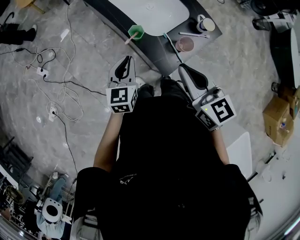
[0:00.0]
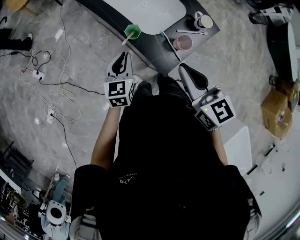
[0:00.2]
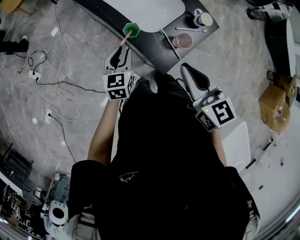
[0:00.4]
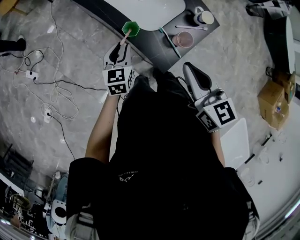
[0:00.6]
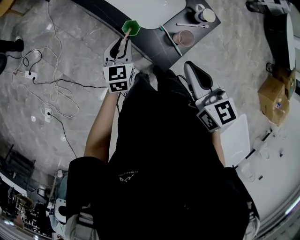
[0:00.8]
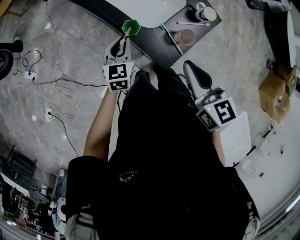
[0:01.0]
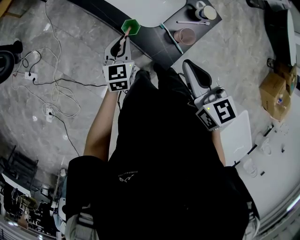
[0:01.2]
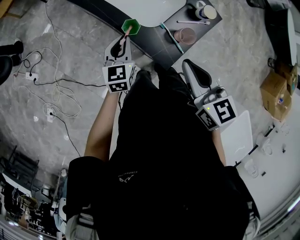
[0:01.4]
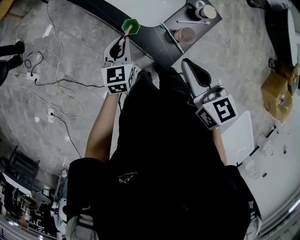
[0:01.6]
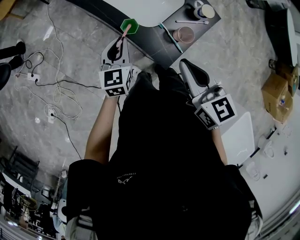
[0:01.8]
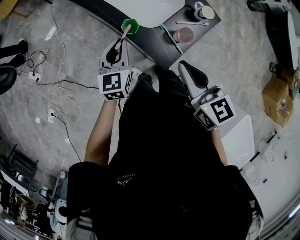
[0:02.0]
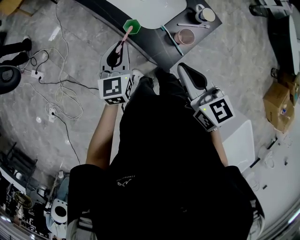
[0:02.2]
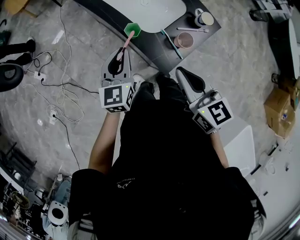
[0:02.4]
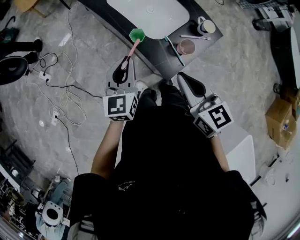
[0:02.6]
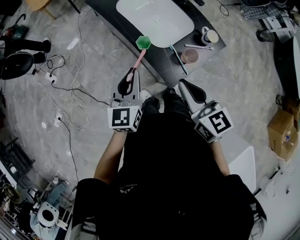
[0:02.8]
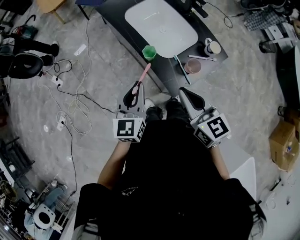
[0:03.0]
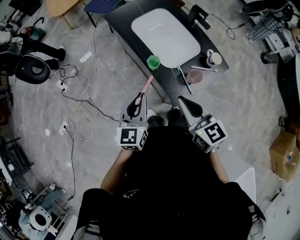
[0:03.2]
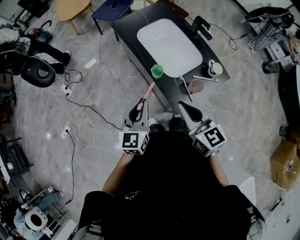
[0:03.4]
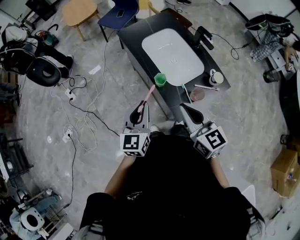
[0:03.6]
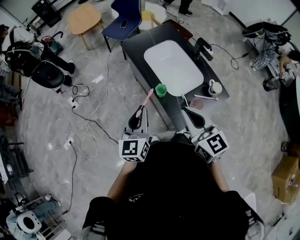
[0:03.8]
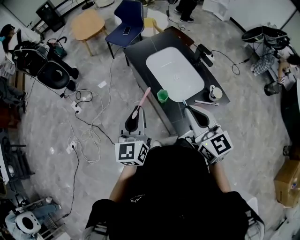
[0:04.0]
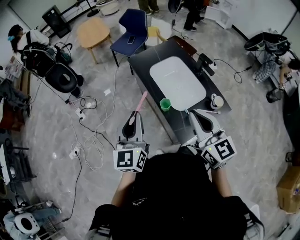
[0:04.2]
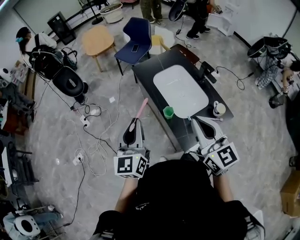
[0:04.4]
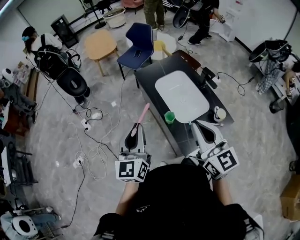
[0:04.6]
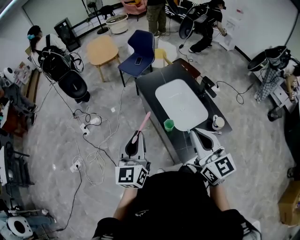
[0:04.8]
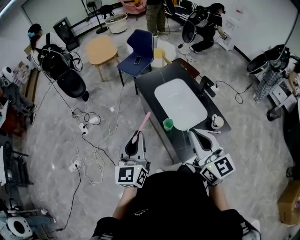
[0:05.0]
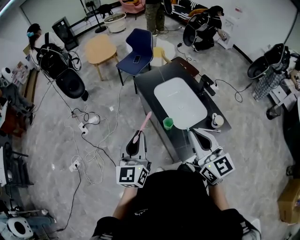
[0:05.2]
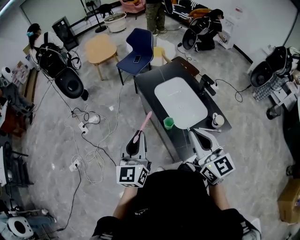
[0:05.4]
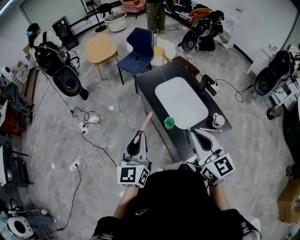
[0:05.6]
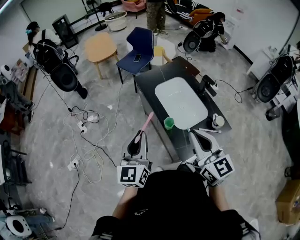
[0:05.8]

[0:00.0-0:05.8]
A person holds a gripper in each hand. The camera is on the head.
0.0 to 1.4 s: The left gripper heads forward and downward, covering approximately 10 cm.
1.4 to 2.8 s: The right gripper ends up roughly 5 cm from where it was. The left gripper travels upward and backward by about 15 cm.
2.8 to 4.4 s: The right gripper goes some 15 cm upward, and swivels roughly 20 degrees. The left gripper moves upward and to the left, about 20 cm, and turns by approximately 20 degrees.
4.4 to 5.8 s: There are only small adjustments of the grippers.

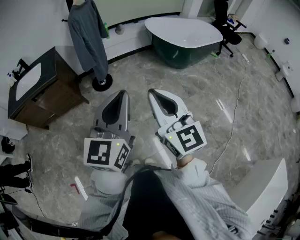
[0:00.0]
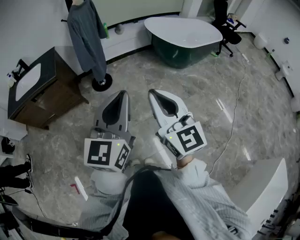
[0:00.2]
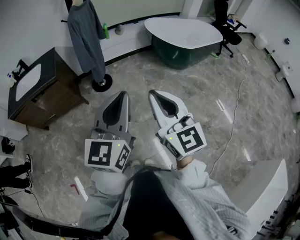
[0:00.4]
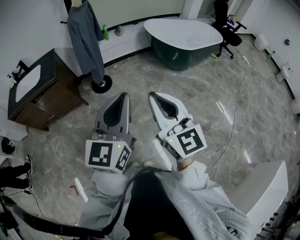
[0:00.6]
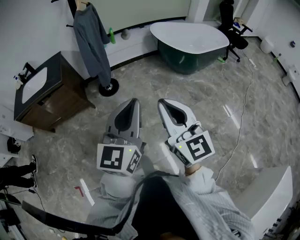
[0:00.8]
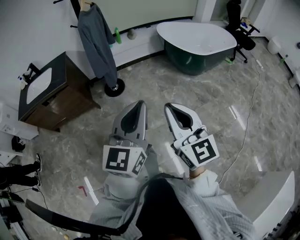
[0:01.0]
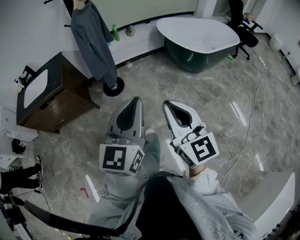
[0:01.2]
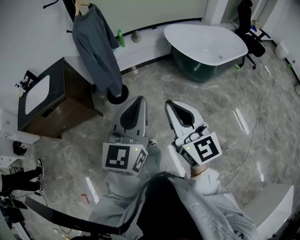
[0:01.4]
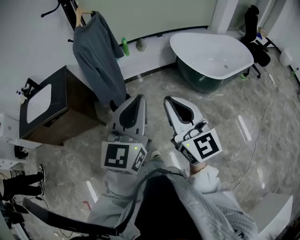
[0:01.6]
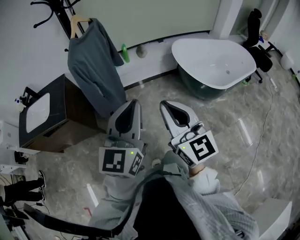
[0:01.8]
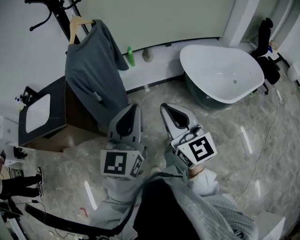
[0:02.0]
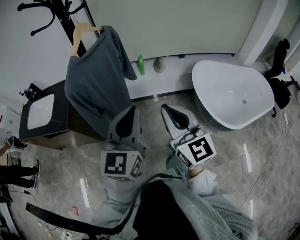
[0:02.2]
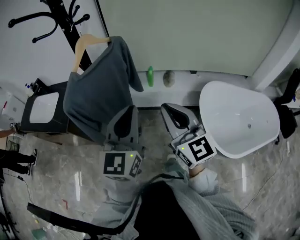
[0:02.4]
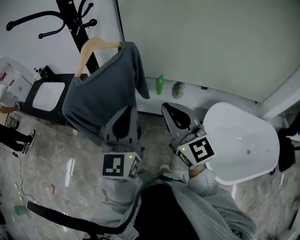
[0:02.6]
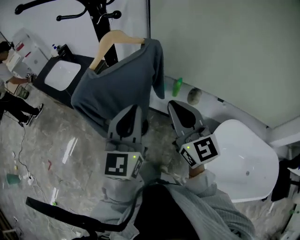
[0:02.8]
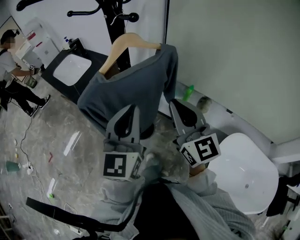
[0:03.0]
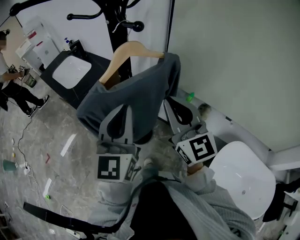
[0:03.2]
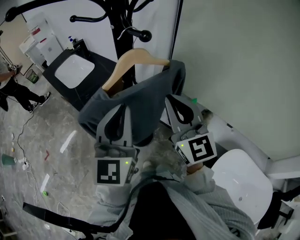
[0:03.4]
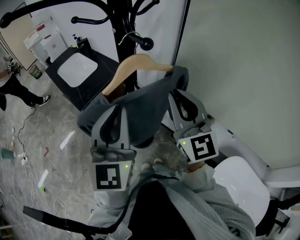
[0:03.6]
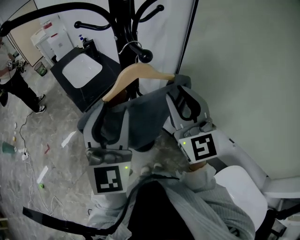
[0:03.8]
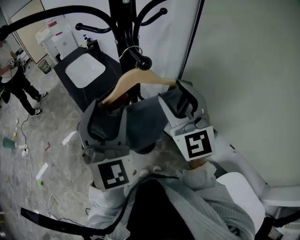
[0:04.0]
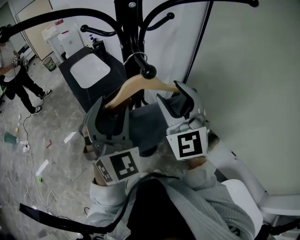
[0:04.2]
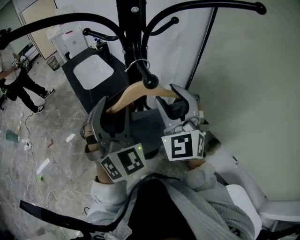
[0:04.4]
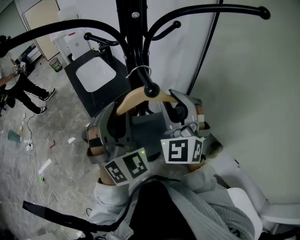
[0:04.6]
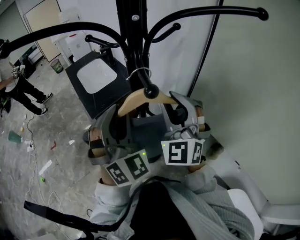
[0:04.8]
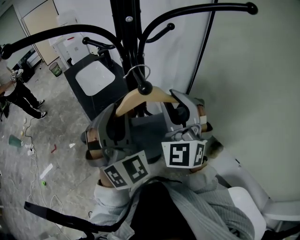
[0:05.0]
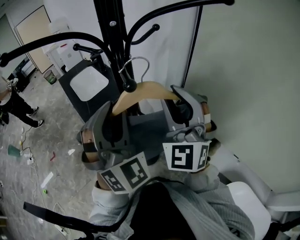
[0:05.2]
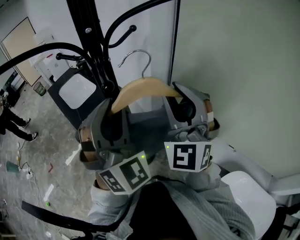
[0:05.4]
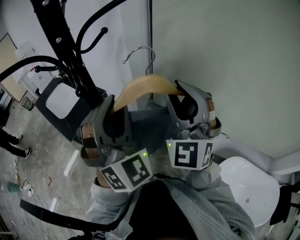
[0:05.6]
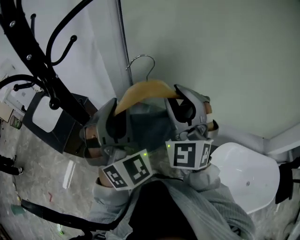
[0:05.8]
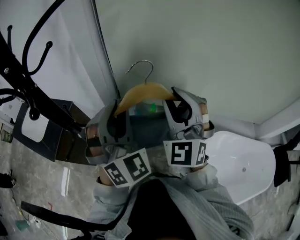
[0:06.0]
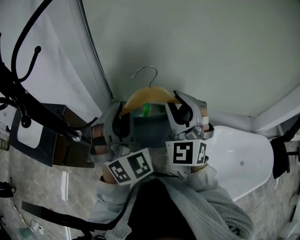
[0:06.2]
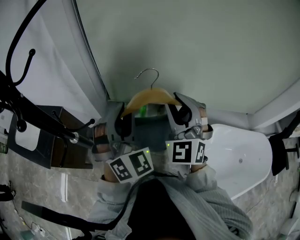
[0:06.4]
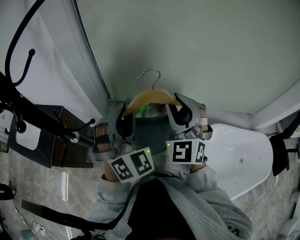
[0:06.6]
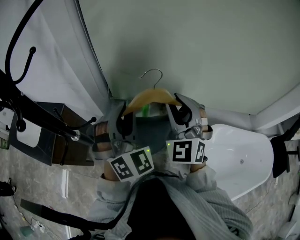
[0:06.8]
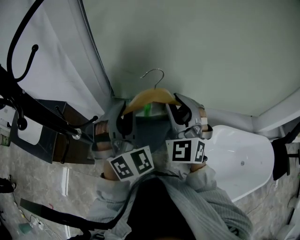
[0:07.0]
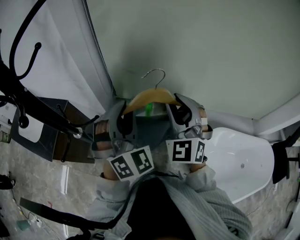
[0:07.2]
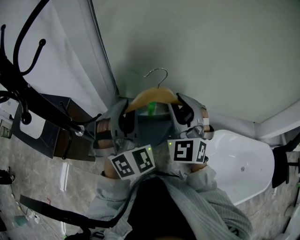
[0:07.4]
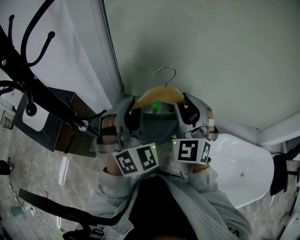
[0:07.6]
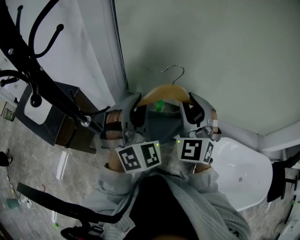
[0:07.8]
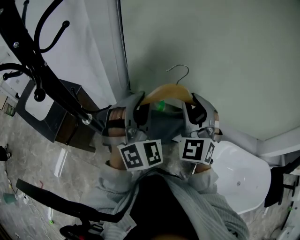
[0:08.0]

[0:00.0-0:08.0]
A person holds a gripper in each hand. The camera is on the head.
0.0 to 1.6 s: The grippers both shift forward by about 35 cm.
1.6 to 3.2 s: The two grippers travel together, some 50 cm. The right gripper turns by about 50 degrees. The left gripper rotates about 60 degrees.
3.2 to 4.8 s: The grippers both shift forward by roughly 15 cm. The left gripper rolls clockwise, seen from behind, by approximately 60 degrees, and opens its fingers. Meanwhile the right gripper rotates approximately 40 degrees, and opens its fingers.
4.8 to 6.4 s: The left gripper moves some 5 cm upward and comes back, and swivels roughly 50 degrees. Meanwhile the right gripper reaches some 5 cm upward, then returns, and turns by some 50 degrees.
6.4 to 8.0 s: There are only small adjustments of the grippers.

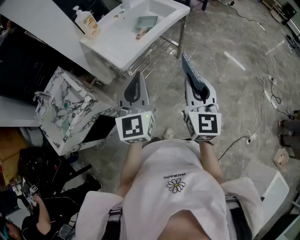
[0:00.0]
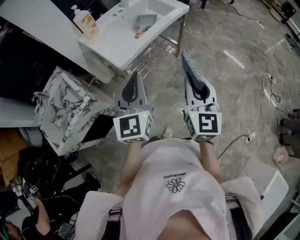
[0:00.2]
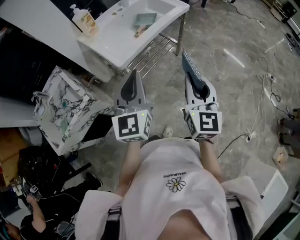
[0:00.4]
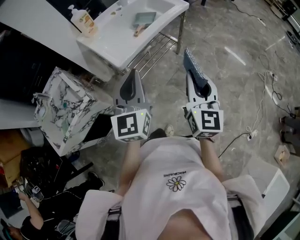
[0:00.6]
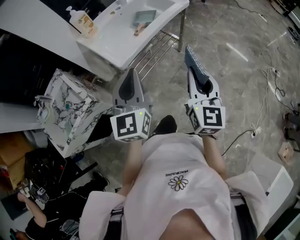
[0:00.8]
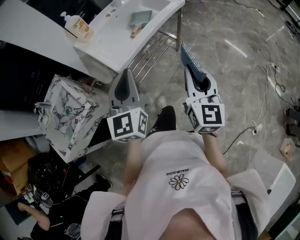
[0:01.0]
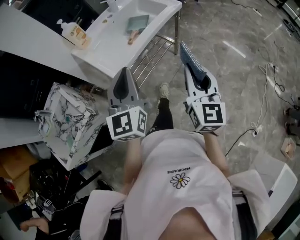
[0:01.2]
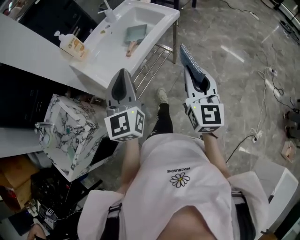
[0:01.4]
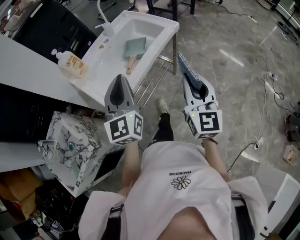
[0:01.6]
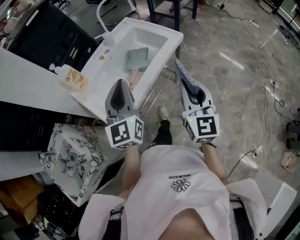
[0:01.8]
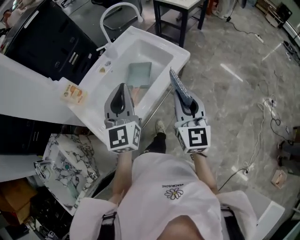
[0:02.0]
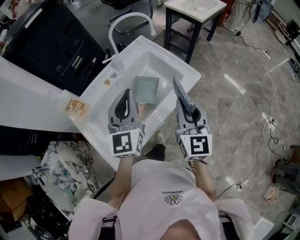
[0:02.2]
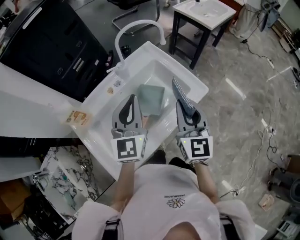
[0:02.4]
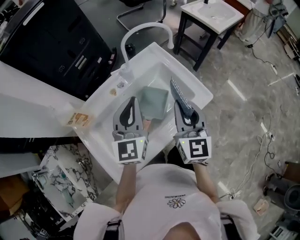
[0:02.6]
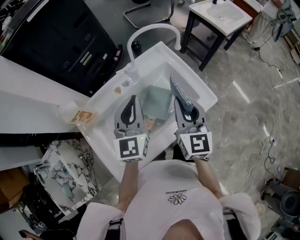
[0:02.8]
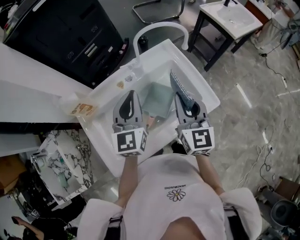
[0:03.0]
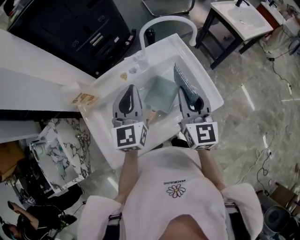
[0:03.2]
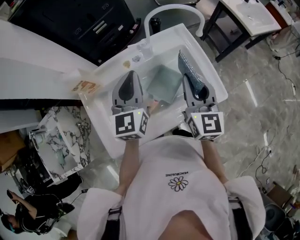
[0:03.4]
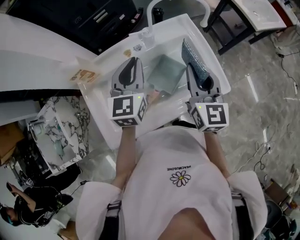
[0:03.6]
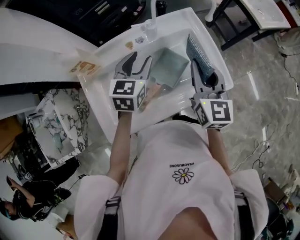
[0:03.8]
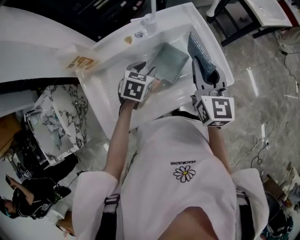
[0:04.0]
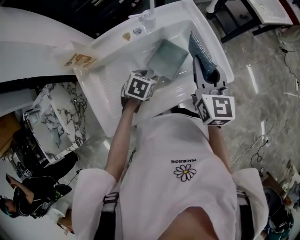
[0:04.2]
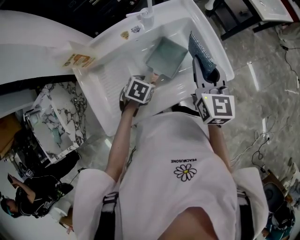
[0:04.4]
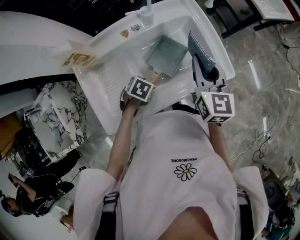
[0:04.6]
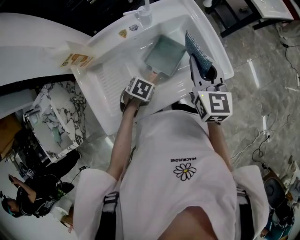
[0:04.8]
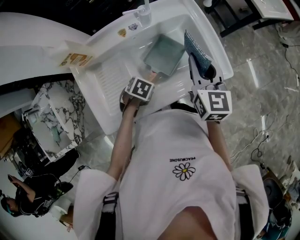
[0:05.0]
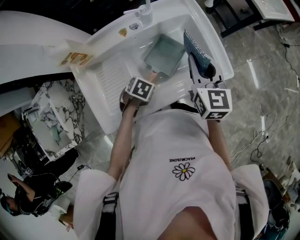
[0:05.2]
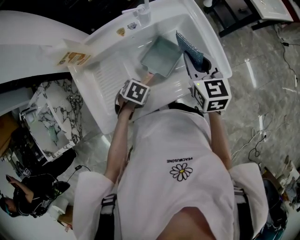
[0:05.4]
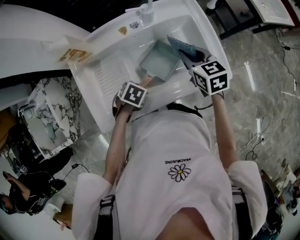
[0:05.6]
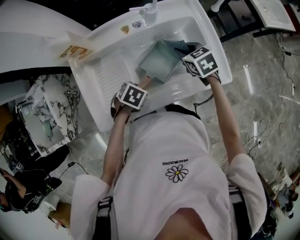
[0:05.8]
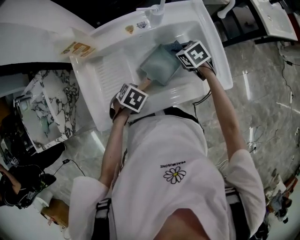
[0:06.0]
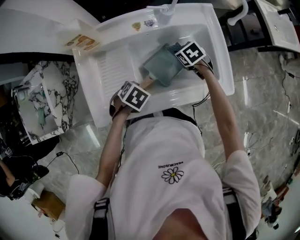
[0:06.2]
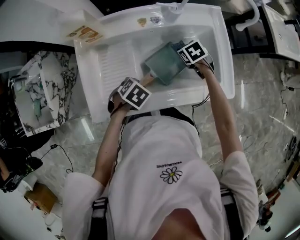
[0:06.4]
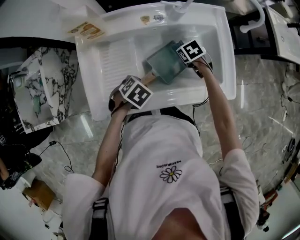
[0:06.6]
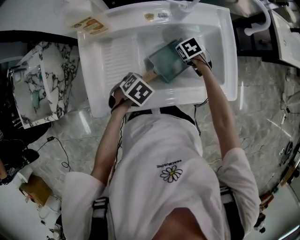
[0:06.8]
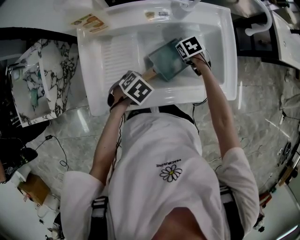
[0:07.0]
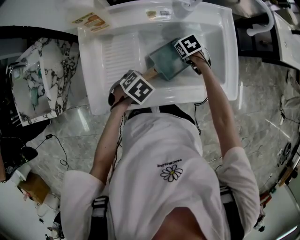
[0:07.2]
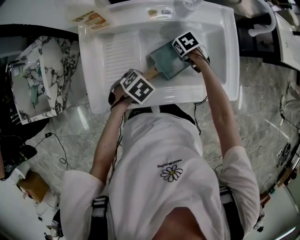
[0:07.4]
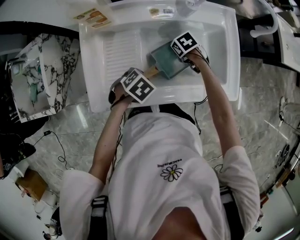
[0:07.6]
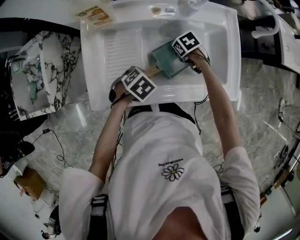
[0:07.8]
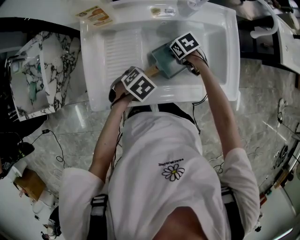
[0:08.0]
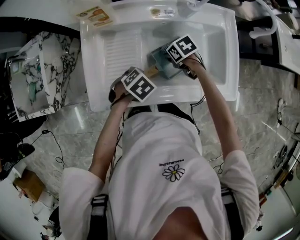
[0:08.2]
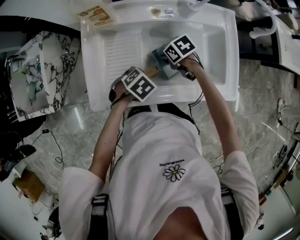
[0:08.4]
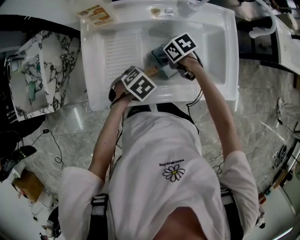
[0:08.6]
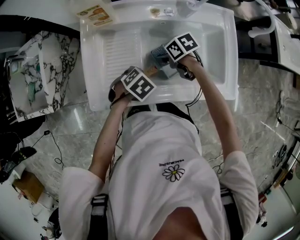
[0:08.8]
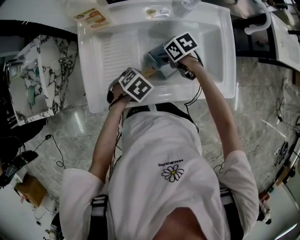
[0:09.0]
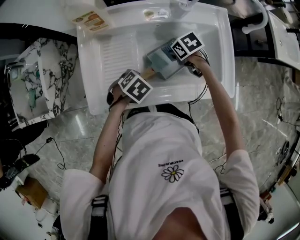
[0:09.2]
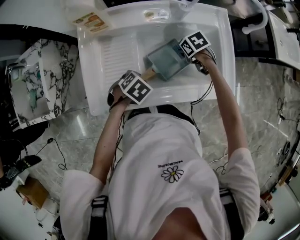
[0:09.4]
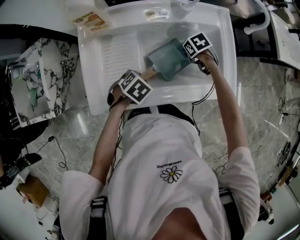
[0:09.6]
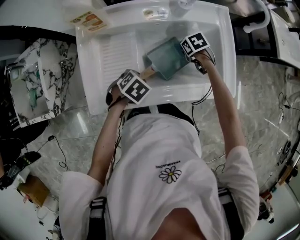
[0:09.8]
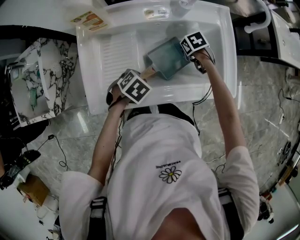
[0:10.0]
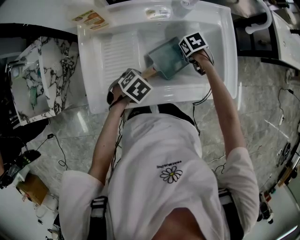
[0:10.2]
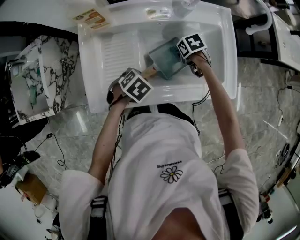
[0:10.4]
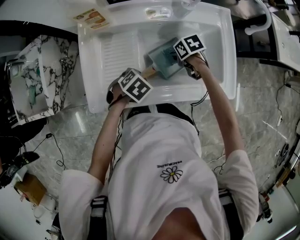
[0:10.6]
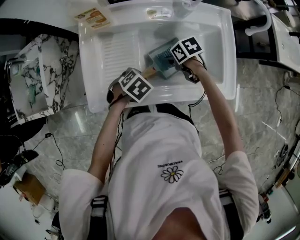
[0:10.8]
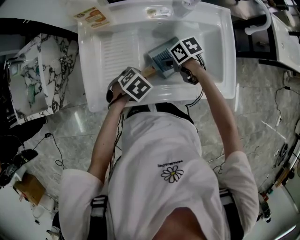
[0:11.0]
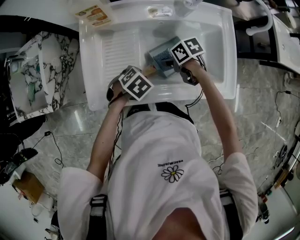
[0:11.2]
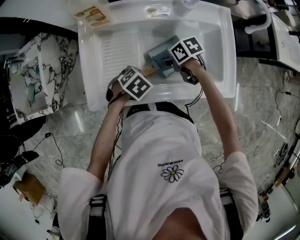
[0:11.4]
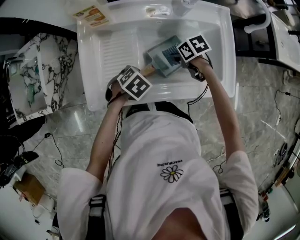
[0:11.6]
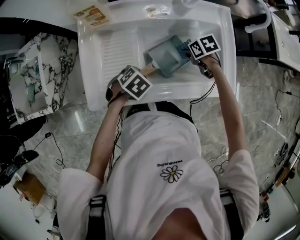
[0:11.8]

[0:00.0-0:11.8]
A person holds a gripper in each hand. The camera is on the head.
0.0 to 1.4 s: The two grippers go roughly 15 cm forward.
1.4 to 3.0 s: The pair of grippers is taken forward, about 50 cm. The right gripper rotates roughly 30 degrees.
3.0 to 4.4 s: The left gripper travels downward by approximately 30 cm, points its fingers roughly 60 degrees further downward, and opens up.
4.4 to 6.0 s: The left gripper shifts by some 5 cm. Meanwhile the right gripper heads downward, covering about 20 cm, and points its fingers about 50 degrees further downward.
6.0 to 7.4 s: The right gripper travels downward by approximately 10 cm, and rotates some 20 degrees.
7.4 to 8.8 s: The right gripper changes place by some 10 cm, and rotates some 30 degrees.
8.8 to 10.4 s: The right gripper moves approximately 10 cm, and swivels about 20 degrees.
